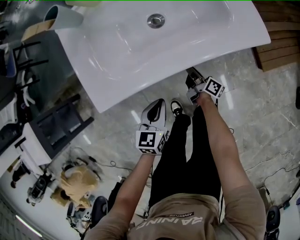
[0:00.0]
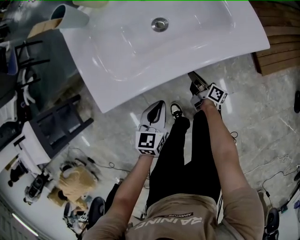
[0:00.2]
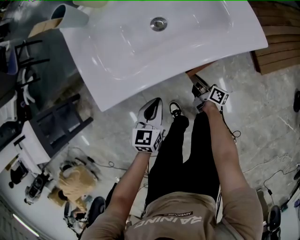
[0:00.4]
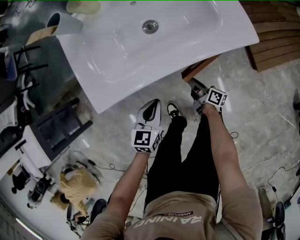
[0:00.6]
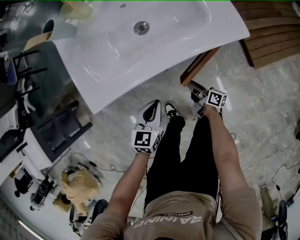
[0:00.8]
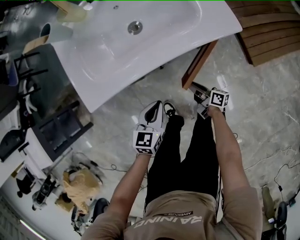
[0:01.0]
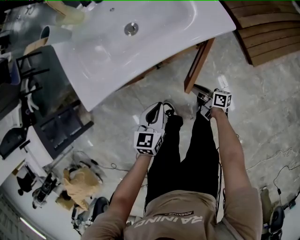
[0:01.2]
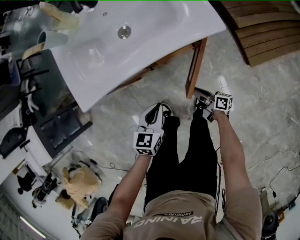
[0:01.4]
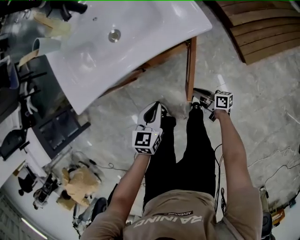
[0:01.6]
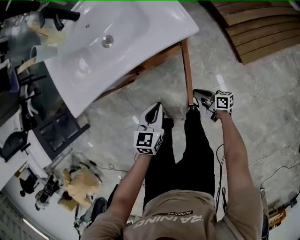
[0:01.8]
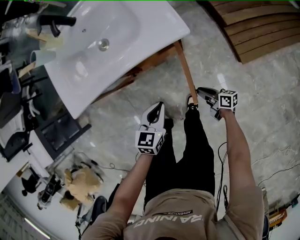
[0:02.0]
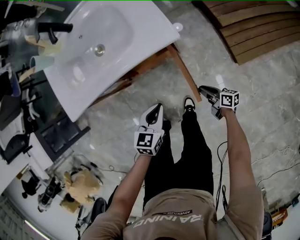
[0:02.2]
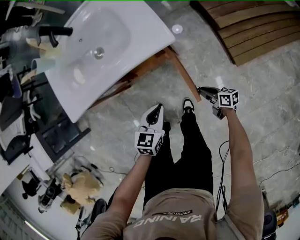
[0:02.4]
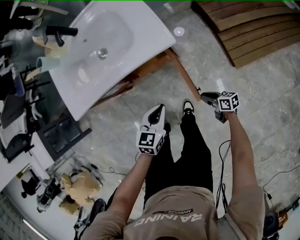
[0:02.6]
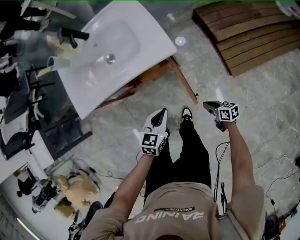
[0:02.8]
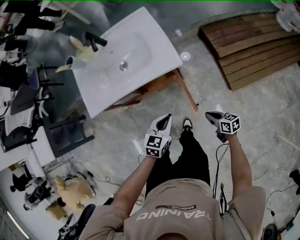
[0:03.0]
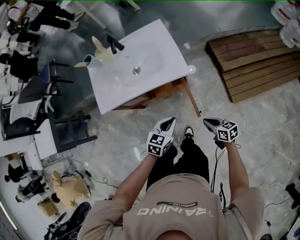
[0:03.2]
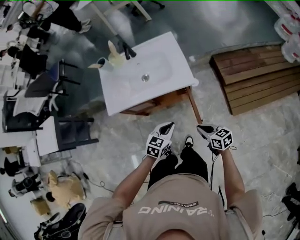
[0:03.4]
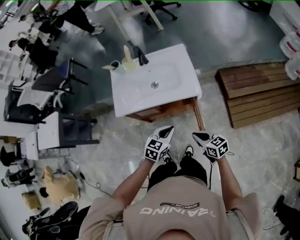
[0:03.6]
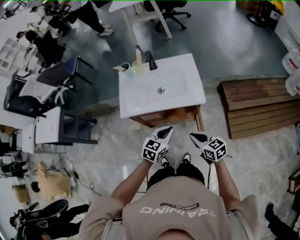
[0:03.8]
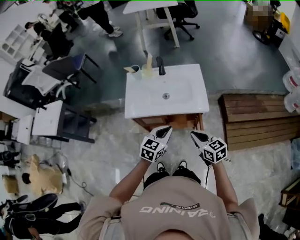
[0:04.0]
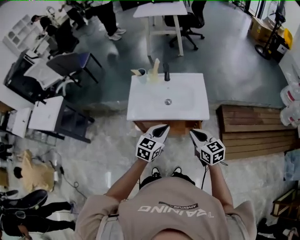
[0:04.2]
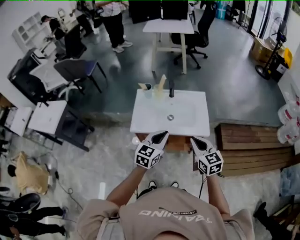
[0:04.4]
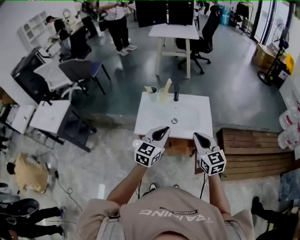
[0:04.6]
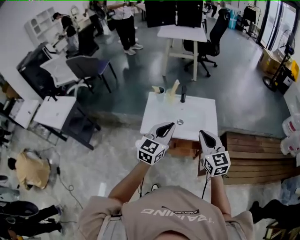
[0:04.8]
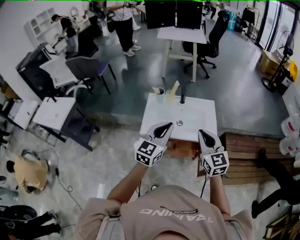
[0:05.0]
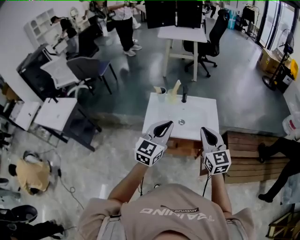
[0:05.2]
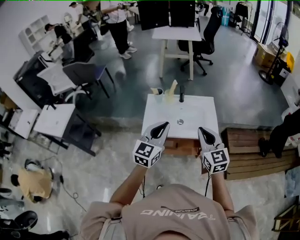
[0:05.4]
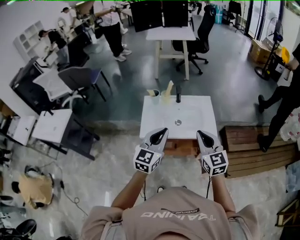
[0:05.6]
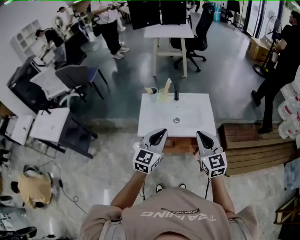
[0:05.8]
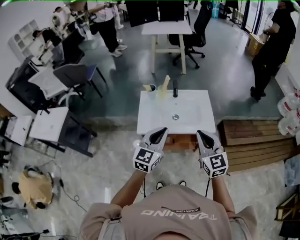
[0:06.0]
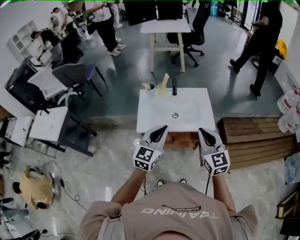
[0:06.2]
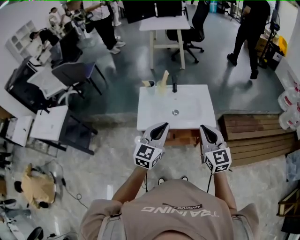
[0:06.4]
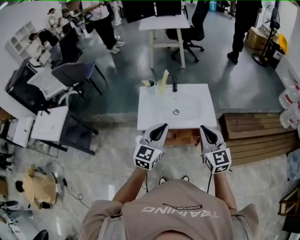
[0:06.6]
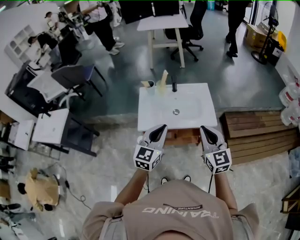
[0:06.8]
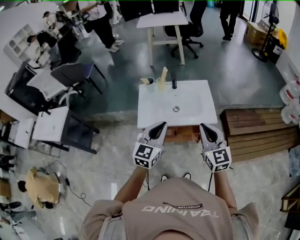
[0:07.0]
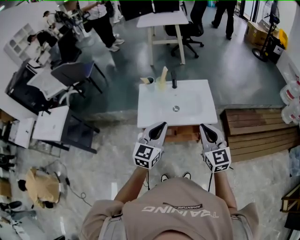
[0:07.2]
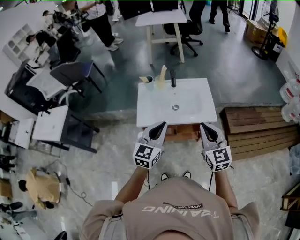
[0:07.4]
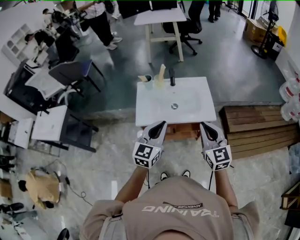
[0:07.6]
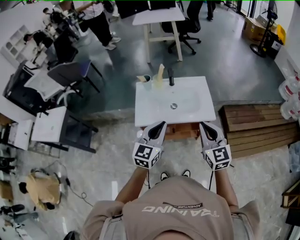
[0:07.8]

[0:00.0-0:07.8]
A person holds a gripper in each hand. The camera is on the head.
0.0 to 1.6 s: The left gripper moves to the right, some 15 cm, while the right gripper goes roughly 20 cm backward and to the right, and turns by roughly 30 degrees.
1.6 to 3.2 s: The left gripper moves to the right and upward, approximately 20 cm; the right gripper travels upward and to the right by roughly 25 cm, and turns by about 40 degrees.
3.2 to 4.6 s: Both grippers travel together upward and to the left, about 40 cm. The left gripper angles its fingers upward, by about 30 degrees, while the right gripper rotates around the line of its fingers by about 40 degrees, counterclockwise from behind.
6.2 to 7.8 s: The grippers stay close to where they were, moving slightly.

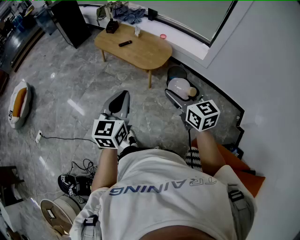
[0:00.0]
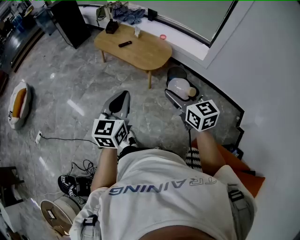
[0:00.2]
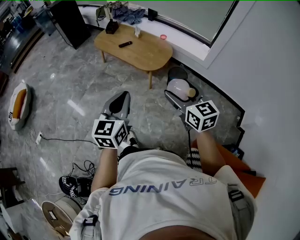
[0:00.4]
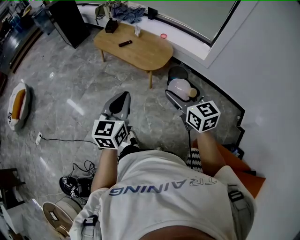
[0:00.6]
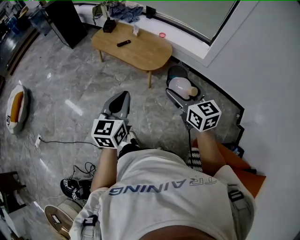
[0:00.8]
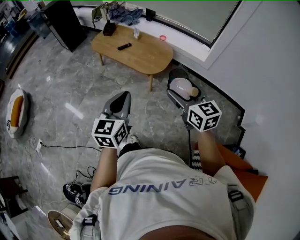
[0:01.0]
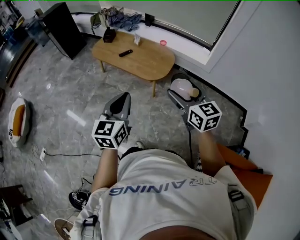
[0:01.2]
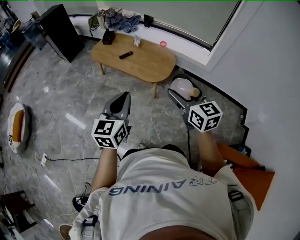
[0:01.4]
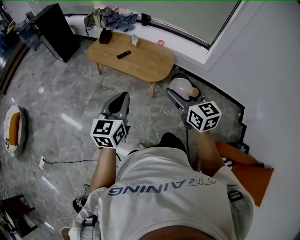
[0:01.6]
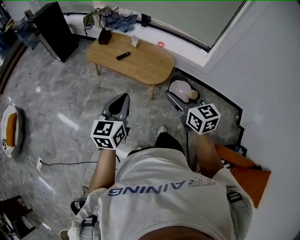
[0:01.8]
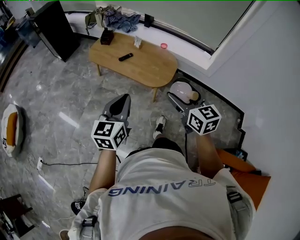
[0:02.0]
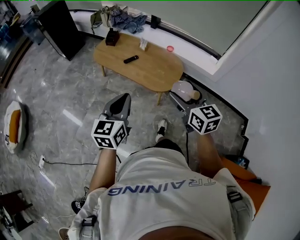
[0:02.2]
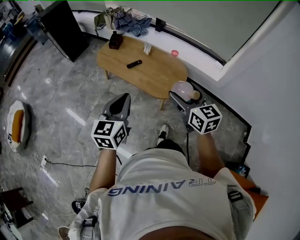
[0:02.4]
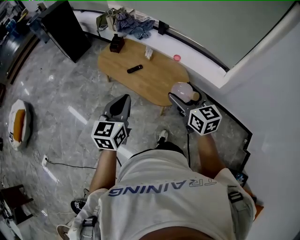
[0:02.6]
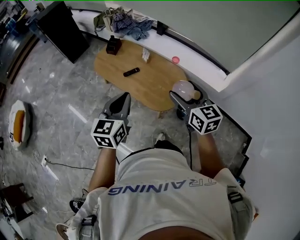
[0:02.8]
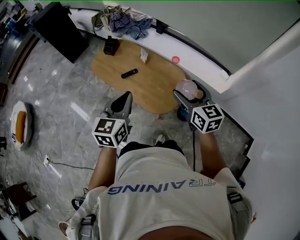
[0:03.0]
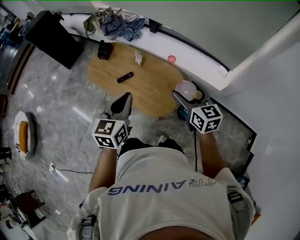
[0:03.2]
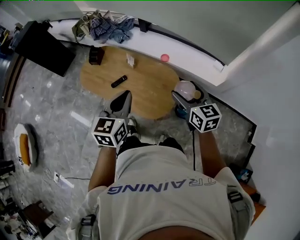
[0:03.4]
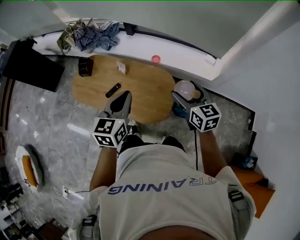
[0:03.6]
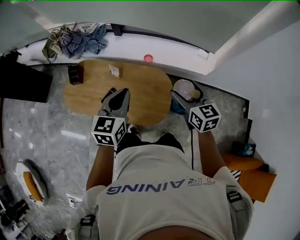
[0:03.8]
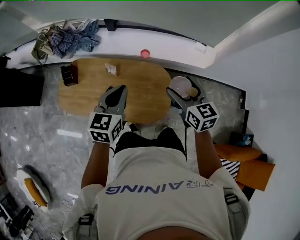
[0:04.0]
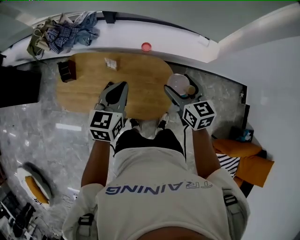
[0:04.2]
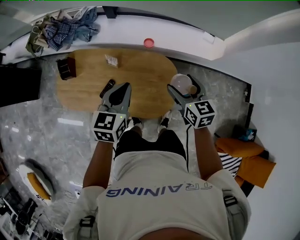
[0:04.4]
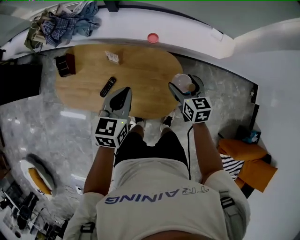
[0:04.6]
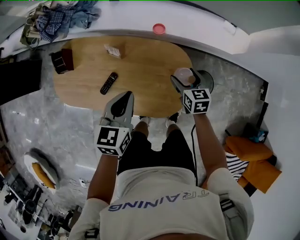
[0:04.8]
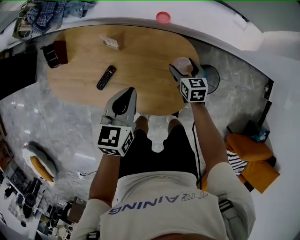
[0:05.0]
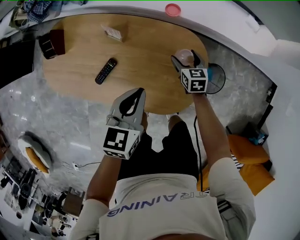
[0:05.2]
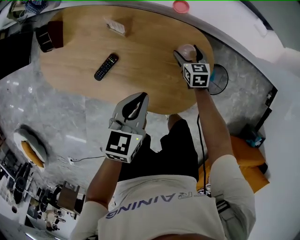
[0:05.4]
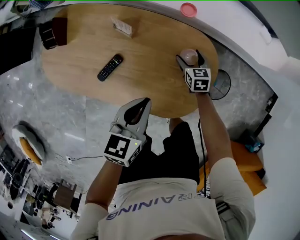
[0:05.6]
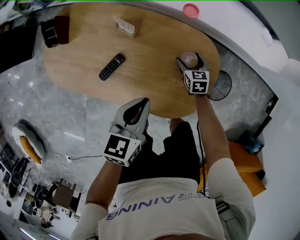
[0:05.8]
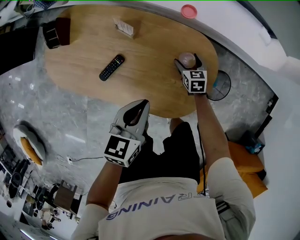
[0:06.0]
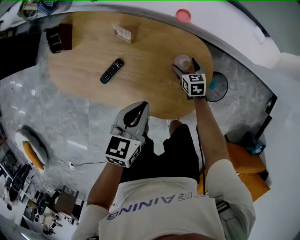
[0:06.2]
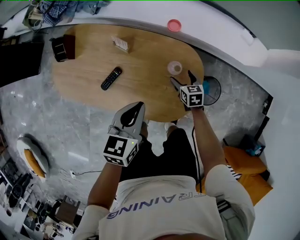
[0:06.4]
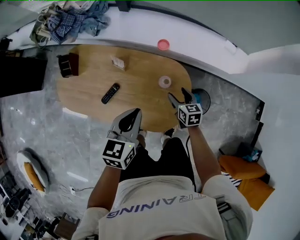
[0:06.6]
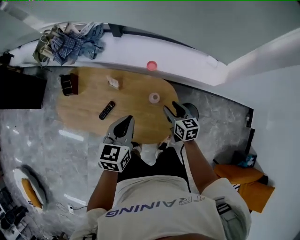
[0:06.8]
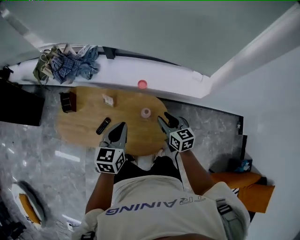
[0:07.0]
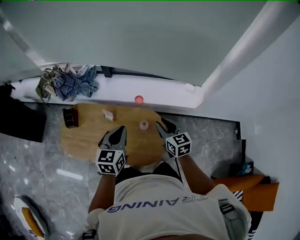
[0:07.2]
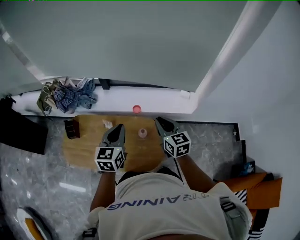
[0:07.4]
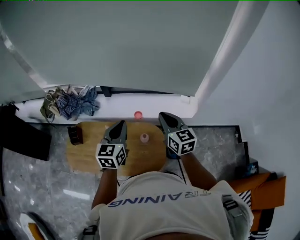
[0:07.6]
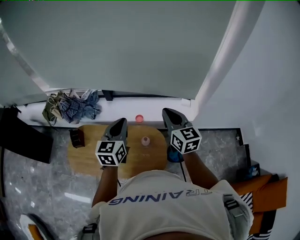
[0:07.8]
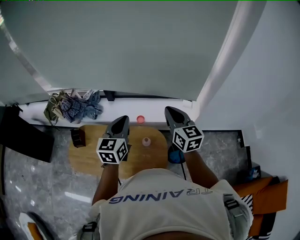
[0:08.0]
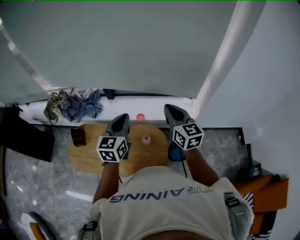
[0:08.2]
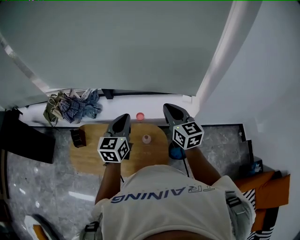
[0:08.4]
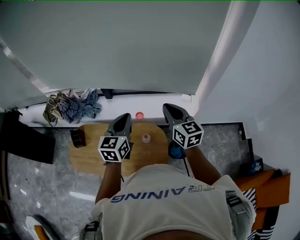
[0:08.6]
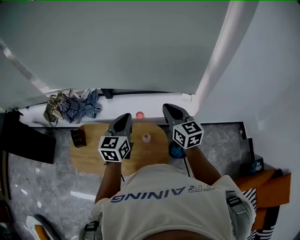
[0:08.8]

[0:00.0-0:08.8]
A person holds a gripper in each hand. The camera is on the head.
0.0 to 1.4 s: Both grippers move forward and to the left, about 15 cm.
1.4 to 3.0 s: The two grippers go about 35 cm forward.
3.0 to 4.4 s: The right gripper moves about 25 cm, and turns by roughly 30 degrees. The left gripper ends up some 35 cm from where it was, and rotates roughly 30 degrees.
4.4 to 5.8 s: The right gripper travels downward by some 50 cm, and changes its angle by approximately 20 degrees. The left gripper moves downward, roughly 25 cm.
5.8 to 7.4 s: The left gripper travels upward by approximately 35 cm, and turns by some 30 degrees. The right gripper travels upward by about 60 cm, tips its fingers upward by approximately 30 degrees, and closes up.
7.4 to 8.8 s: The grippers both shift upward and to the right by some 10 cm.

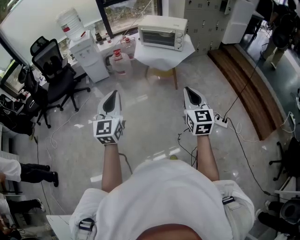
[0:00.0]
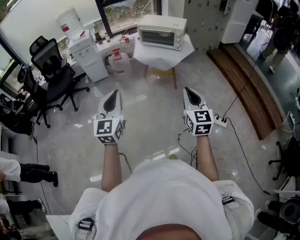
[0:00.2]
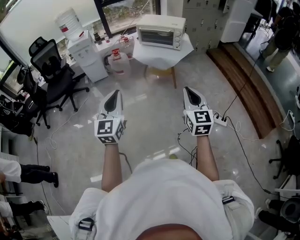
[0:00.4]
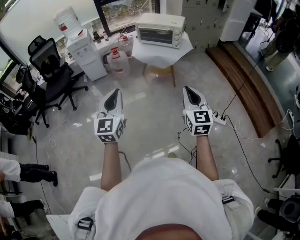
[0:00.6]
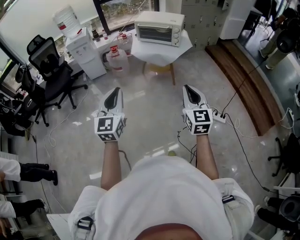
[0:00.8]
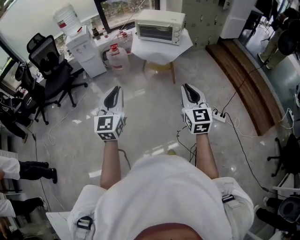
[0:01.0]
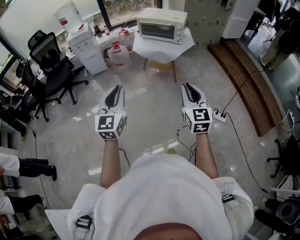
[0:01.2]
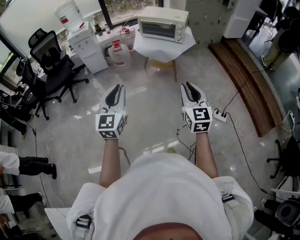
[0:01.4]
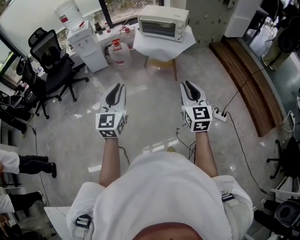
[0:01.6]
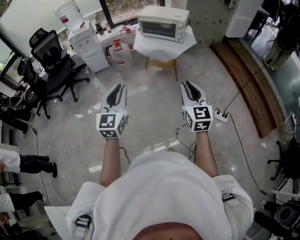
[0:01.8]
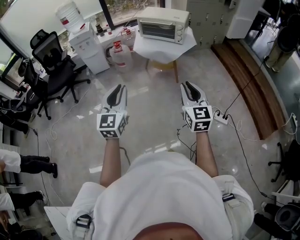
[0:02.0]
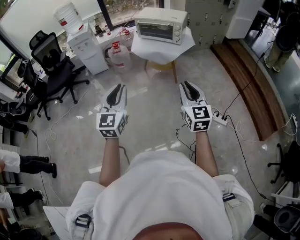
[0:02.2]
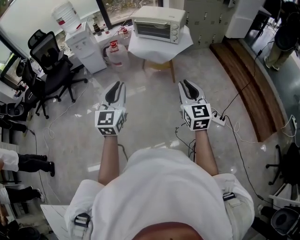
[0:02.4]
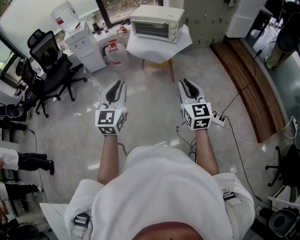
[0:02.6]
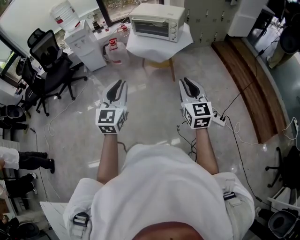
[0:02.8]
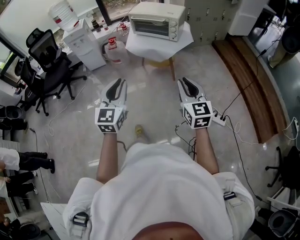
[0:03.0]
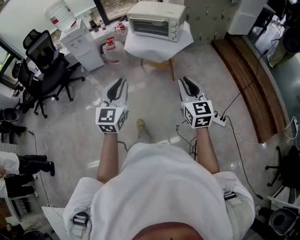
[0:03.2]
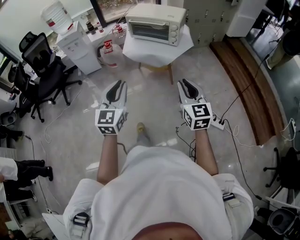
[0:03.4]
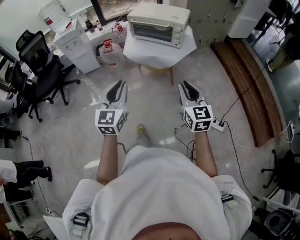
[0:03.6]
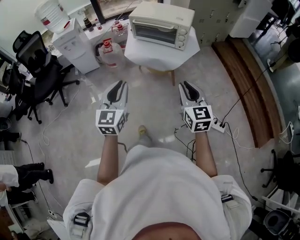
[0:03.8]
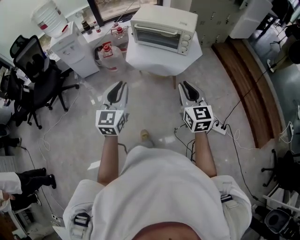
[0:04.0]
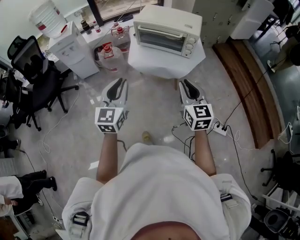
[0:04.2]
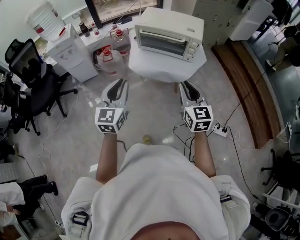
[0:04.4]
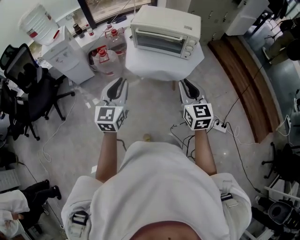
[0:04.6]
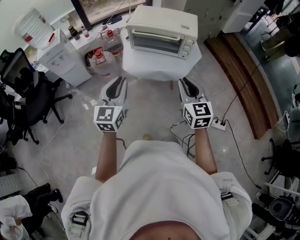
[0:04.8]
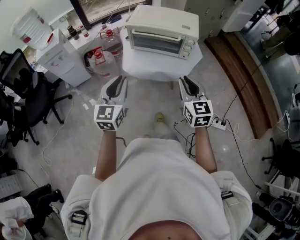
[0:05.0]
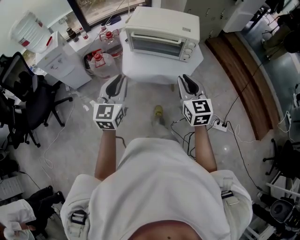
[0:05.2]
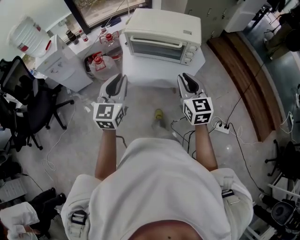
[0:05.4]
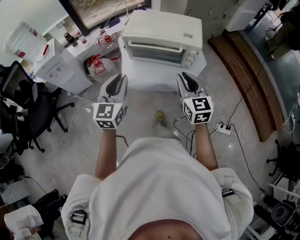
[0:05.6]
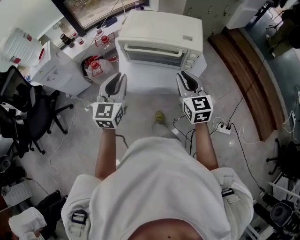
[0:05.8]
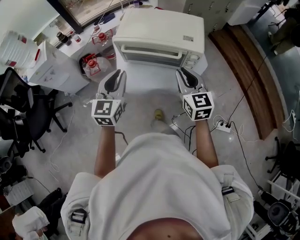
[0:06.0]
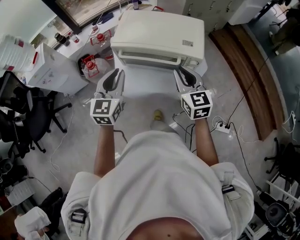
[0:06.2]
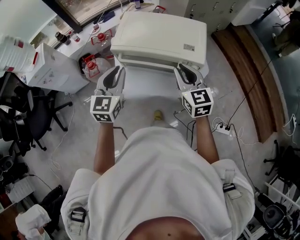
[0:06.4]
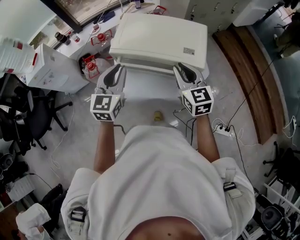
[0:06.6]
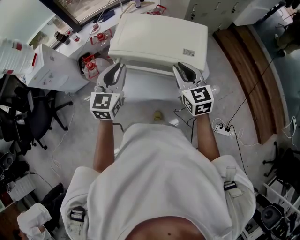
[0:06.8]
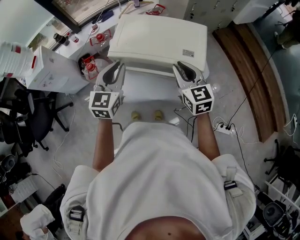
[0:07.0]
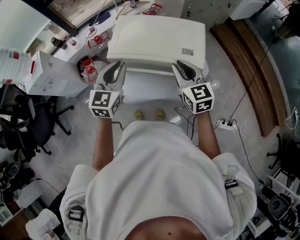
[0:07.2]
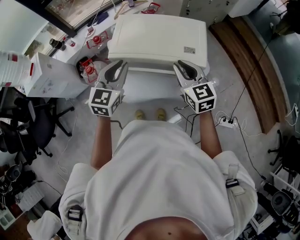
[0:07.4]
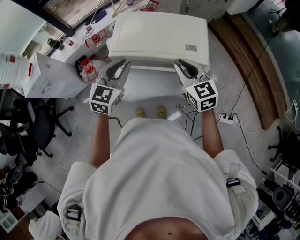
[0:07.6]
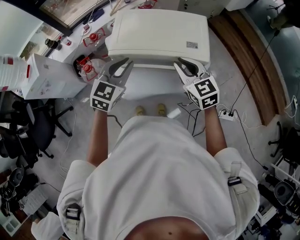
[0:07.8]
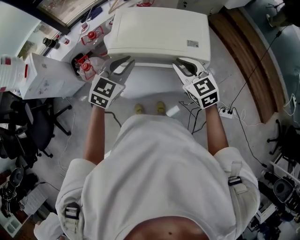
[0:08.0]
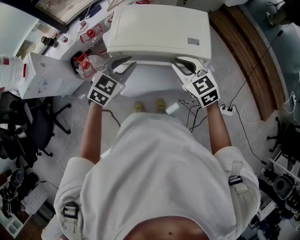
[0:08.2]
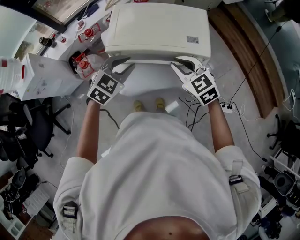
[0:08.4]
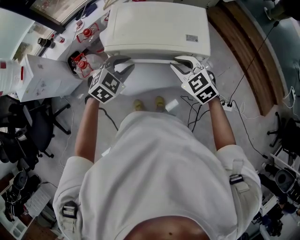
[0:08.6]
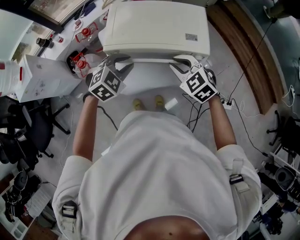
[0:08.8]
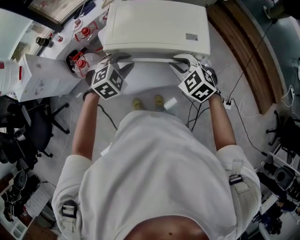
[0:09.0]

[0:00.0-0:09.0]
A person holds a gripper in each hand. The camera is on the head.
0.0 to 1.6 s: The grippers move only a little.
1.6 to 3.0 s: Both grippers move to the right and forward, approximately 15 cm.
3.0 to 4.4 s: The two grippers go about 35 cm forward and to the left.
4.4 to 6.0 s: The grippers both shift forward by some 30 cm.
6.0 to 7.6 s: Both grippers move forward, roughly 15 cm.
7.6 to 9.0 s: The left gripper travels downward by approximately 10 cm, and points its fingers some 30 degrees further downward. The right gripper moves downward, about 5 cm, and changes its angle by about 40 degrees.
